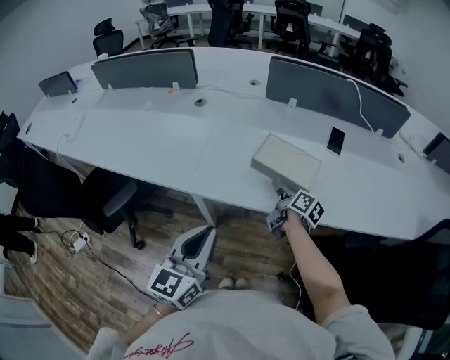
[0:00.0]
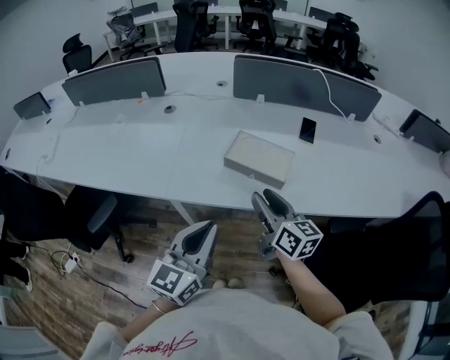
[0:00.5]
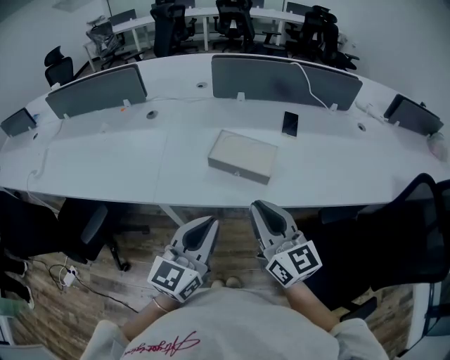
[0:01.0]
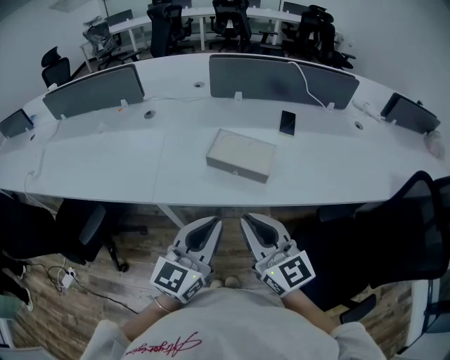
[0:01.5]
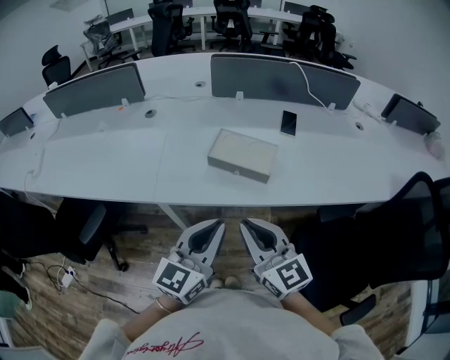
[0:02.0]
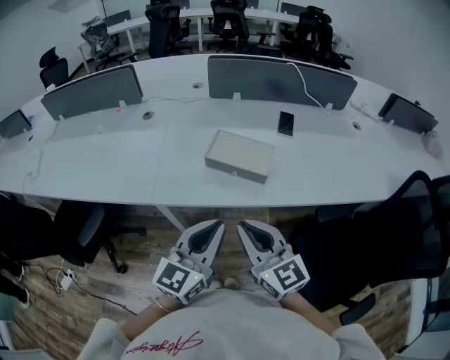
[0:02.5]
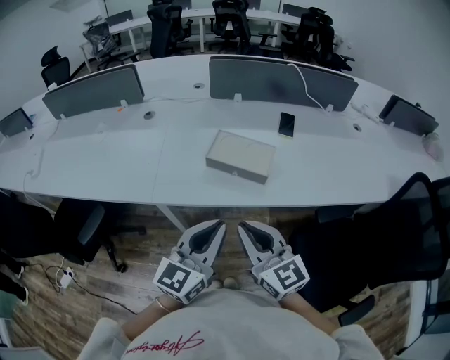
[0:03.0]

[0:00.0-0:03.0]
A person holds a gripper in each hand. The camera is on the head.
0:00.0 to 0:01.5: The left gripper shifts approximately 10 cm to the right. The right gripper travels backward and upward by roughly 30 cm, rolls counterclockwise, seen from behind, by about 60 degrees, and closes.
0:01.5 to 0:03.0: The grippers stay close to where they were, moving slightly.

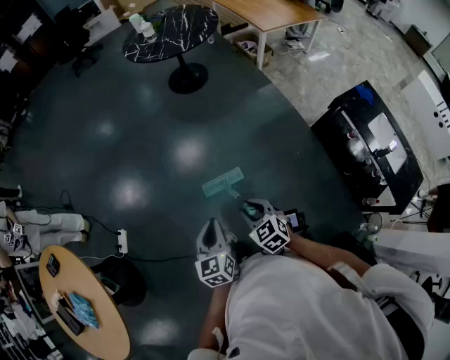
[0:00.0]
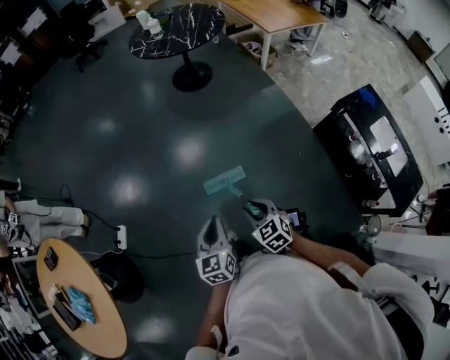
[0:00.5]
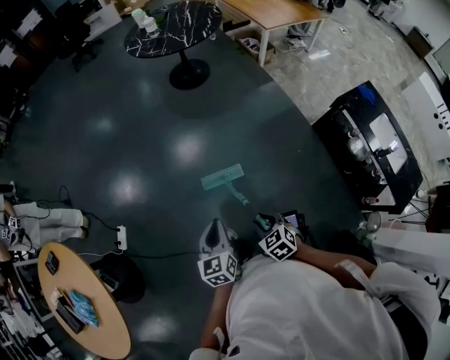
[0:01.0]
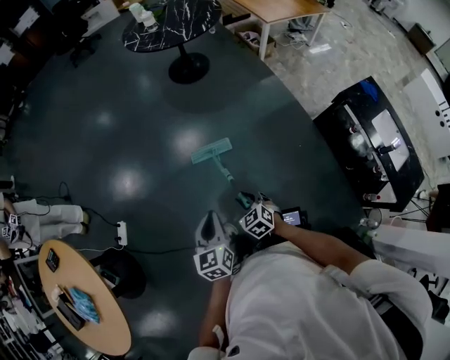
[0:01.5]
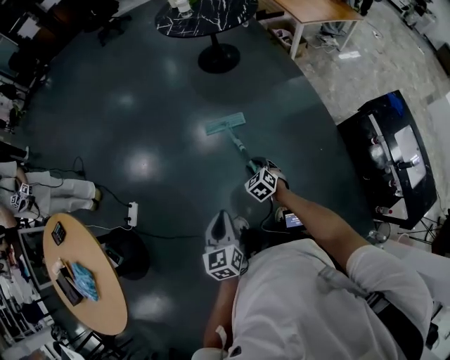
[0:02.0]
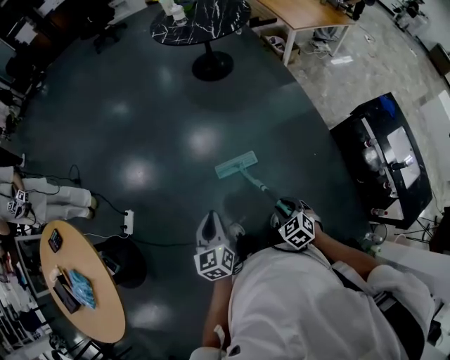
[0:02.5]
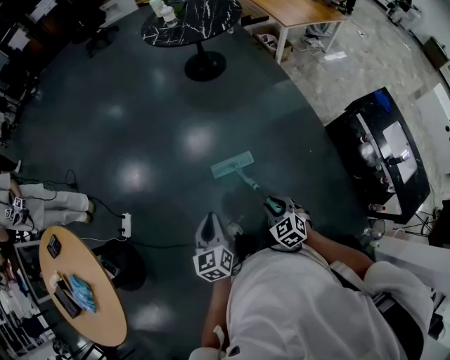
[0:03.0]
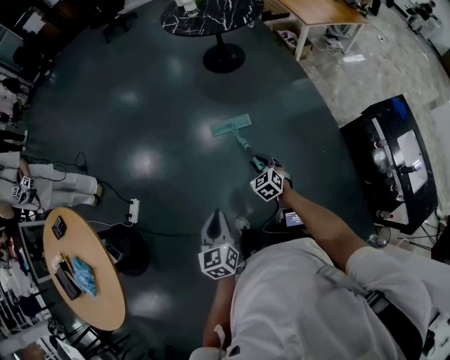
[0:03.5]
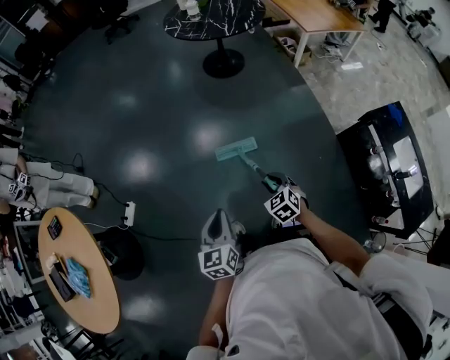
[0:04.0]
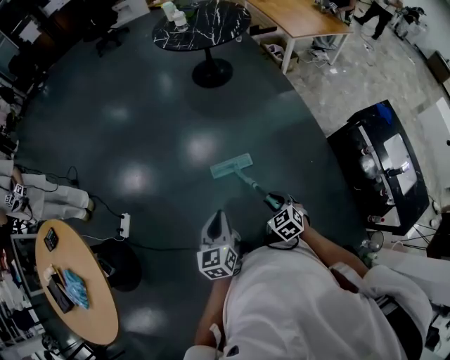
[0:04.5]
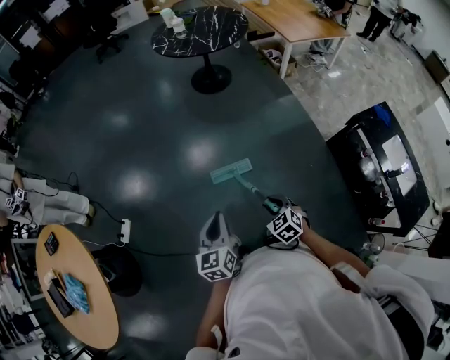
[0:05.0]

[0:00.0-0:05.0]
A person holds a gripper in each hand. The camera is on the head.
0:00.0 to 0:02.5: The left gripper goes about 5 cm to the left; the right gripper swings forward and backward, approximately 20 cm each way, with 2 reversals.
0:02.5 to 0:05.0: The right gripper travels forward and back again, roughly 20 cm each way.

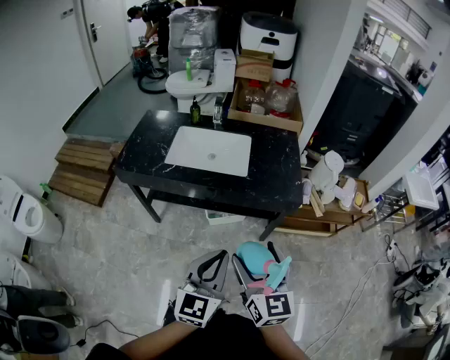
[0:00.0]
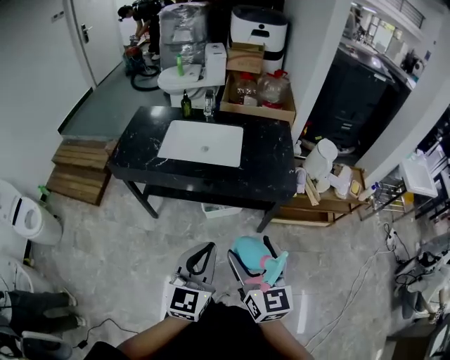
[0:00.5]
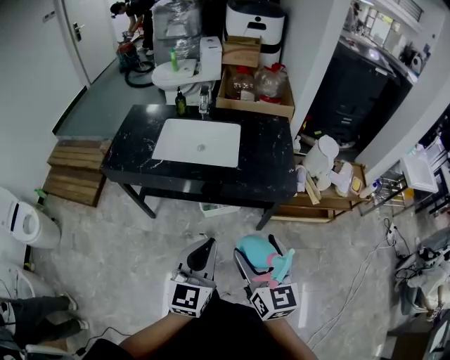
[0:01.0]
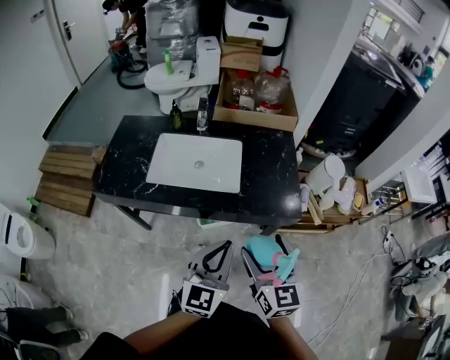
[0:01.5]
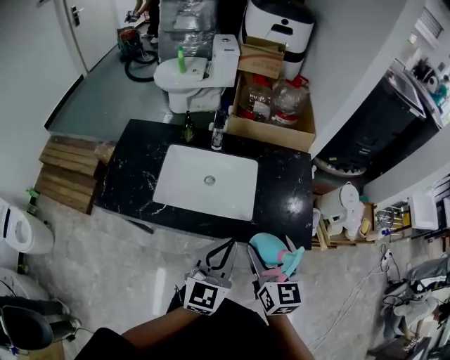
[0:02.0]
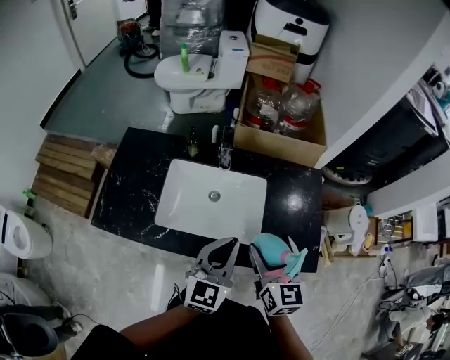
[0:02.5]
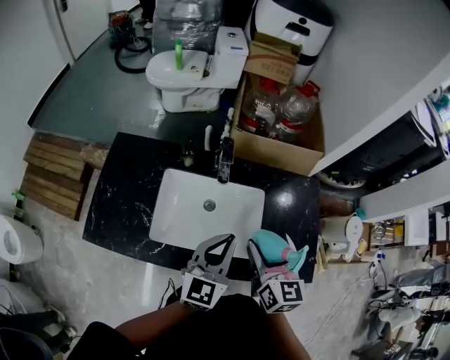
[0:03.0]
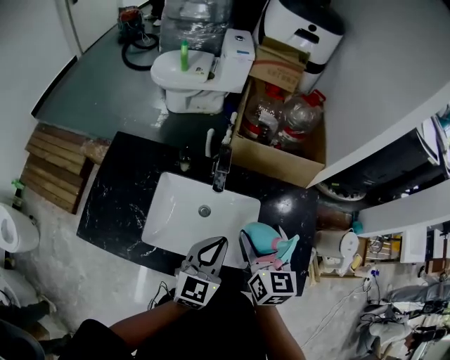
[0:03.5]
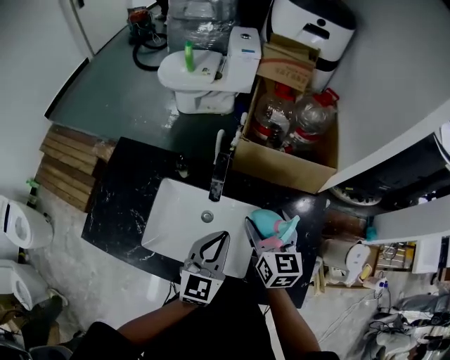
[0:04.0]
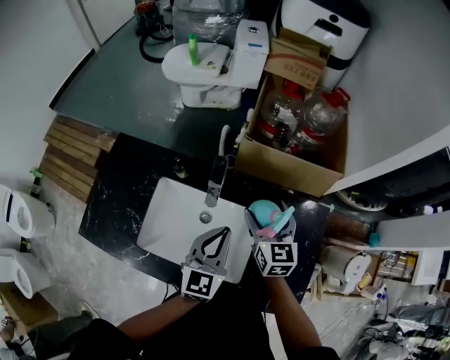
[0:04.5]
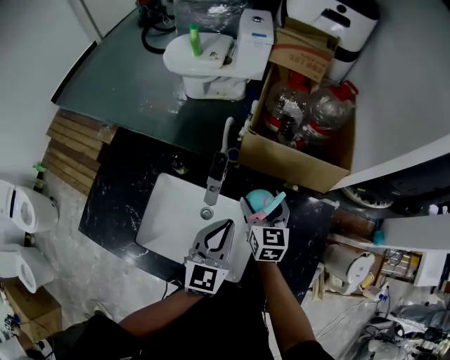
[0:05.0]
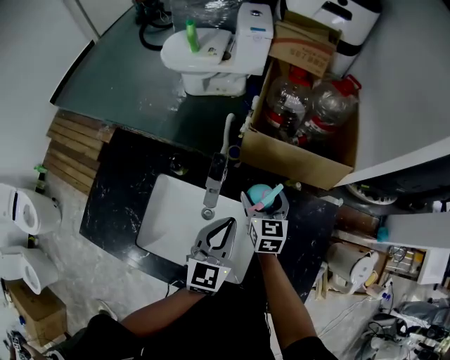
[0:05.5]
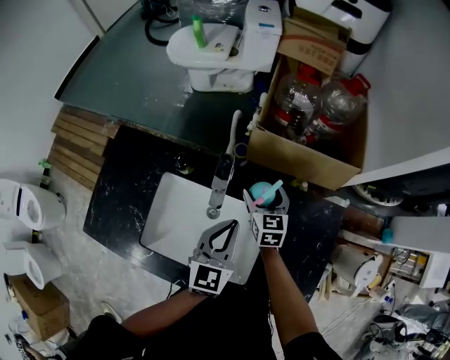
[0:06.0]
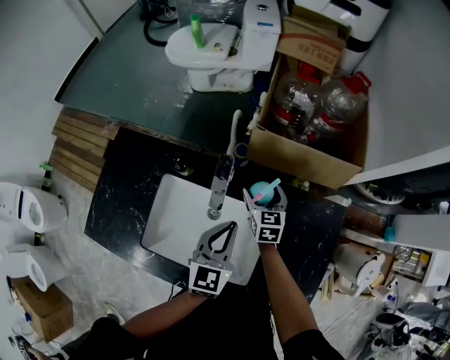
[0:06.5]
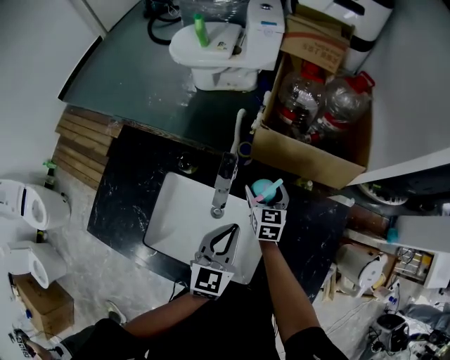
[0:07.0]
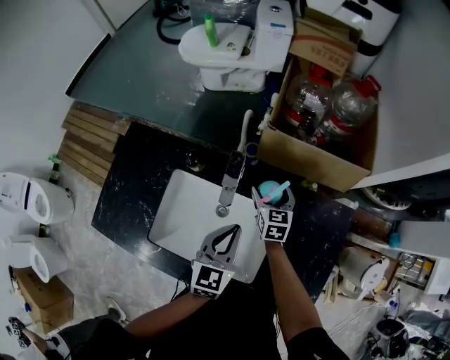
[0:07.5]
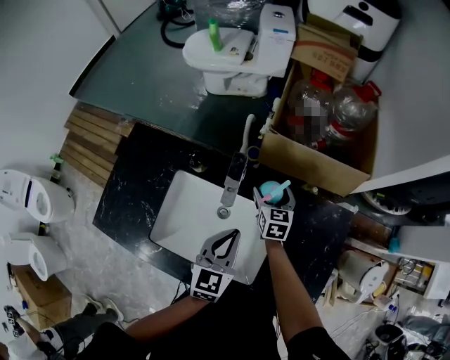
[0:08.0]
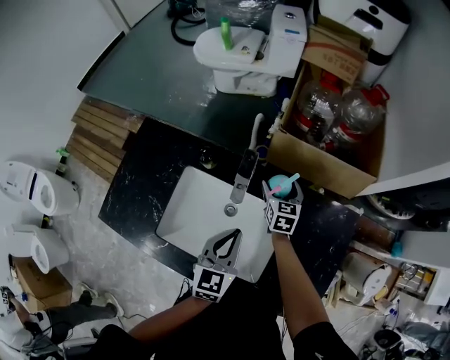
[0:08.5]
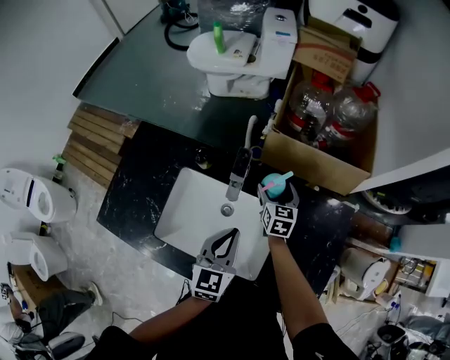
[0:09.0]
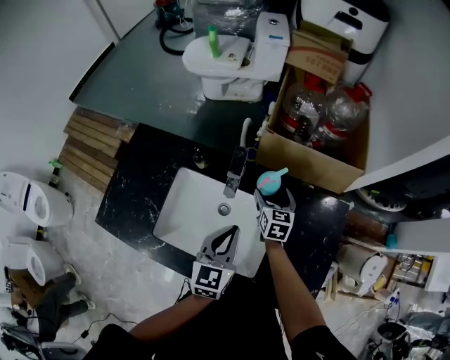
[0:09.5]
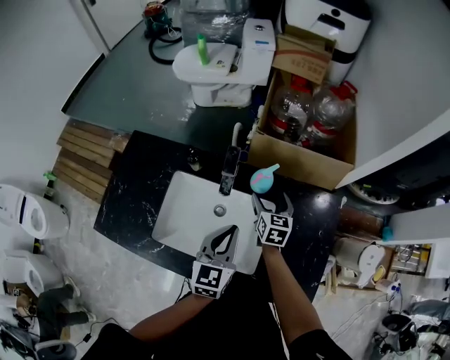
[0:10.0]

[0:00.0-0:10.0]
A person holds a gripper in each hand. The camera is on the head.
0:00.0 to 0:02.0: Both grippers travel together forward, approximately 30 cm.
0:02.0 to 0:04.0: Both grippers travel together forward, approximately 30 cm.
0:04.0 to 0:06.0: The right gripper travels downward and forward by roughly 20 cm. Meanwhile the left gripper heads forward and downward, covering some 10 cm.
0:06.0 to 0:08.0: The grippers move only a little.
0:08.0 to 0:10.0: The right gripper travels backward by roughly 5 cm.

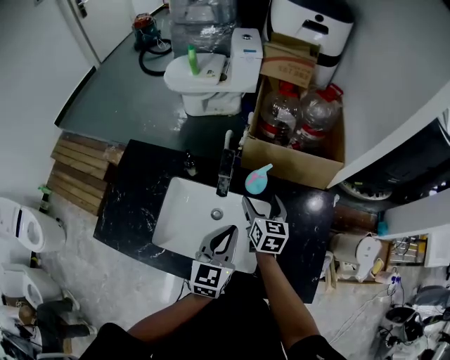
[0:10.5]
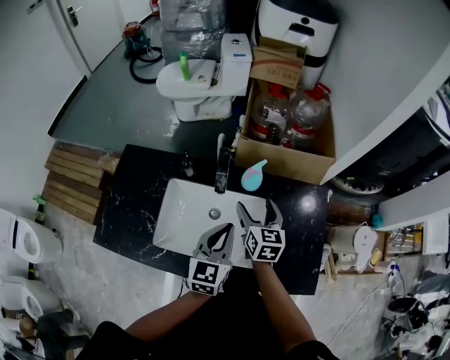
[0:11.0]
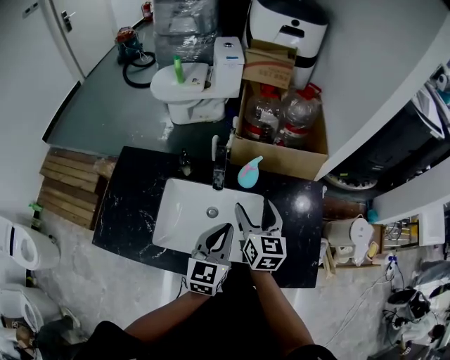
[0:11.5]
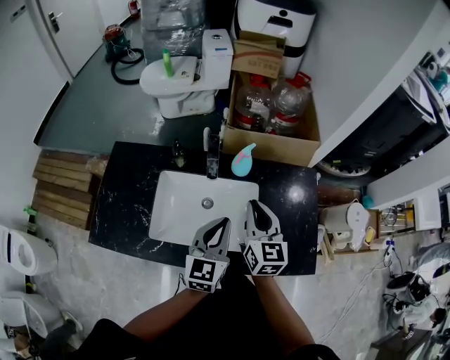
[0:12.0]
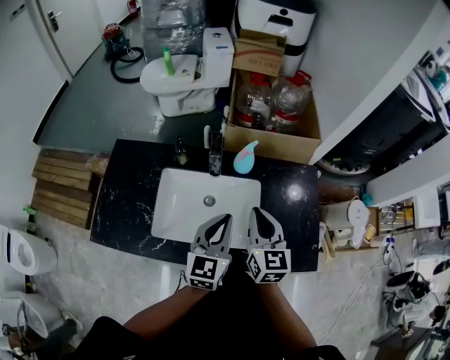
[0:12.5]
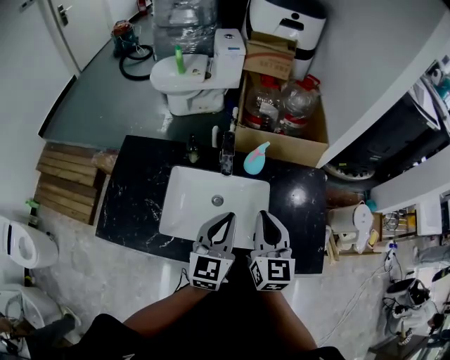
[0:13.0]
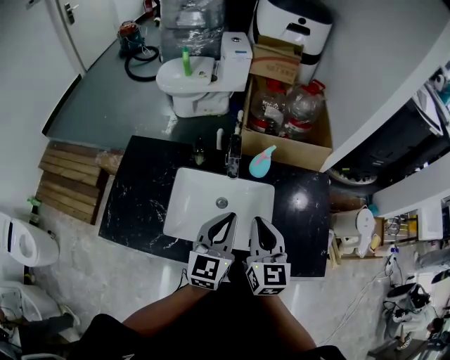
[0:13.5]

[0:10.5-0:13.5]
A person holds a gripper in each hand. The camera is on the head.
0:10.5 to 0:12.0: The right gripper is displaced backward and upward by roughly 15 cm, and closes its fingers. Meanwhile the left gripper goes some 5 cm backward.
0:12.0 to 0:13.5: The left gripper changes place by approximately 5 cm. The right gripper is displaced backward by roughly 5 cm.

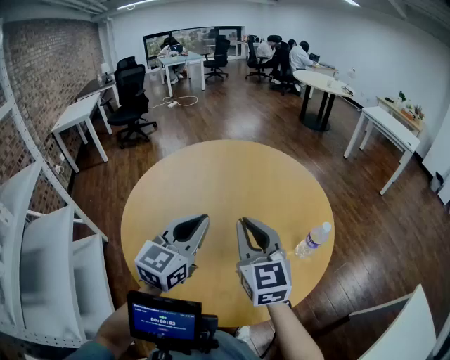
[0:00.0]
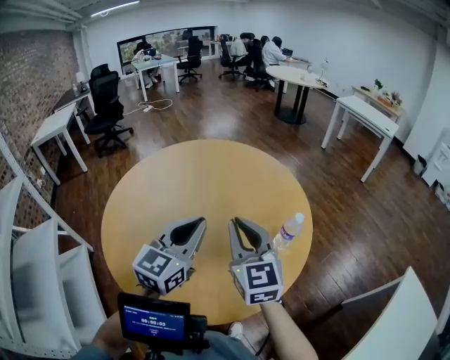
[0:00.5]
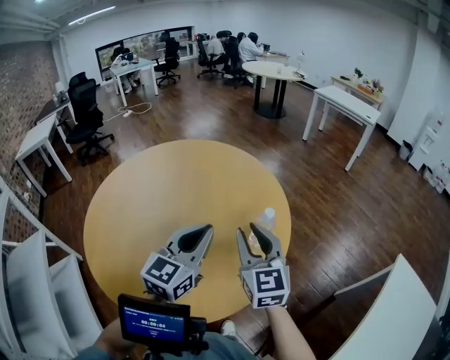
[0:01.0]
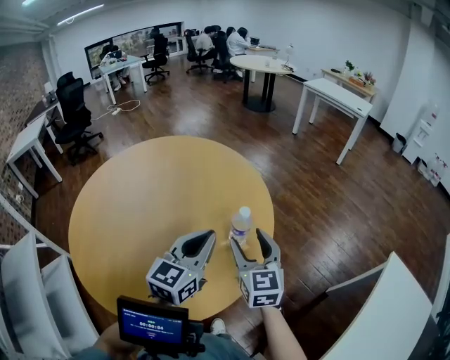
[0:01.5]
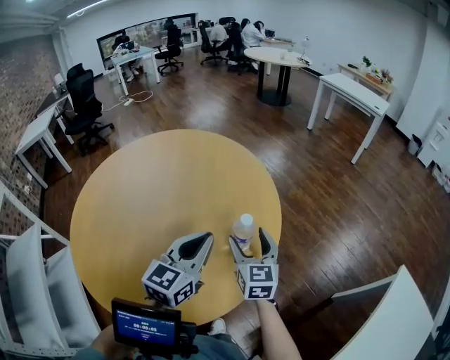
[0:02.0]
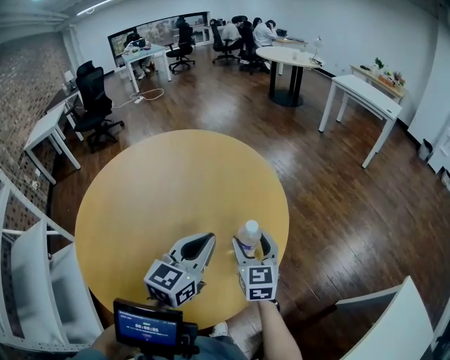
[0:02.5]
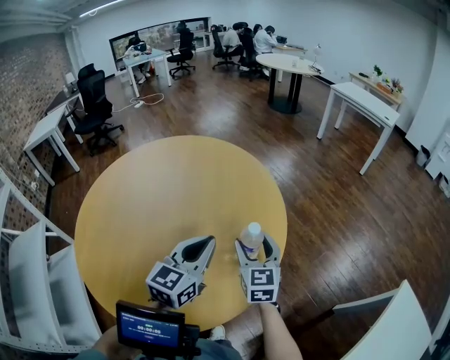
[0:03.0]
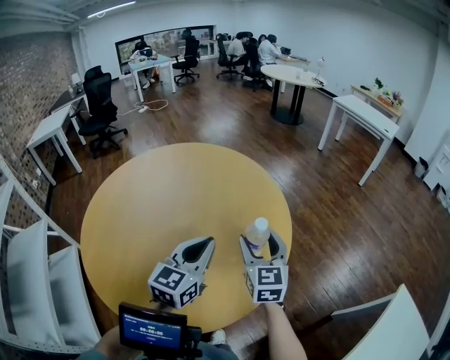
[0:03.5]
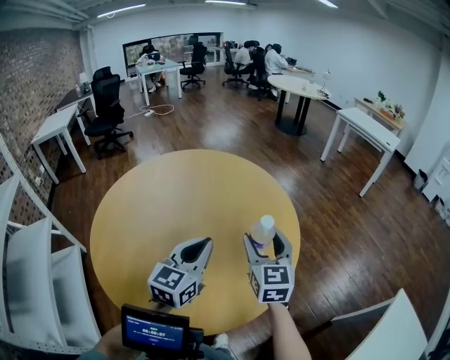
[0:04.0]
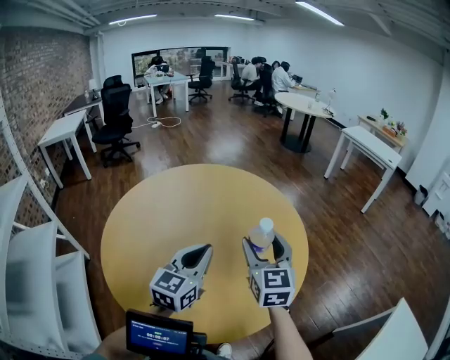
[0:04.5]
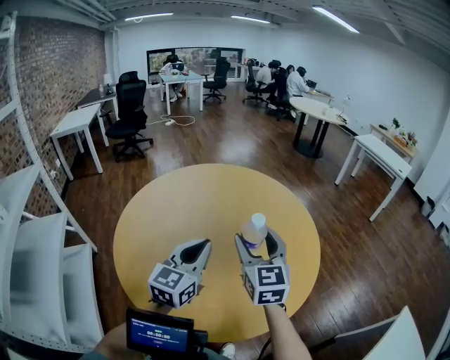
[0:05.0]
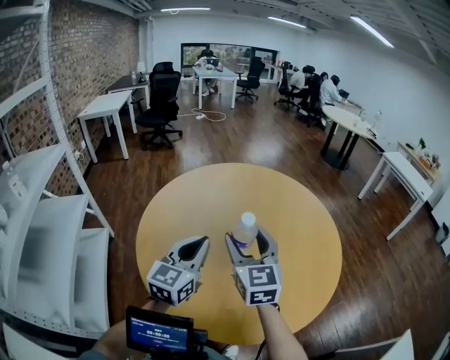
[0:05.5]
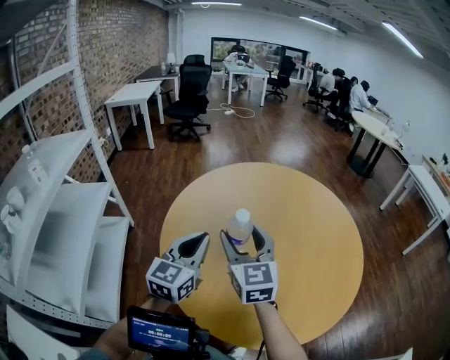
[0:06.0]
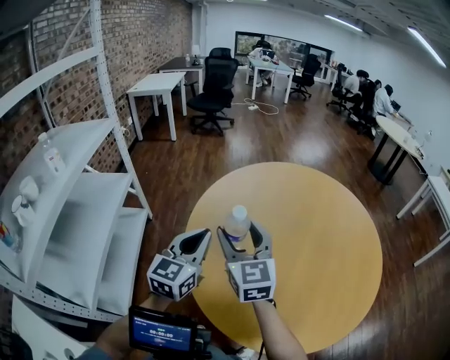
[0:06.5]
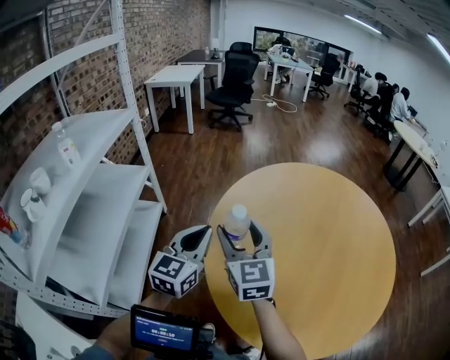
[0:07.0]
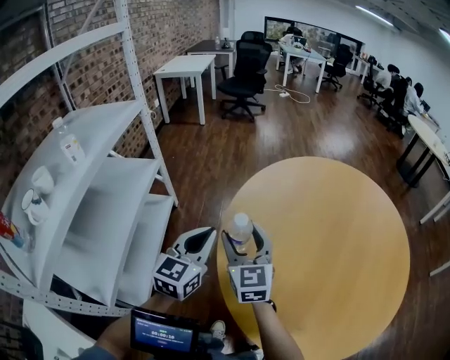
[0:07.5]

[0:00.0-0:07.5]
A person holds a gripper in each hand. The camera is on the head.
0:00.0 to 0:02.0: The right gripper goes some 30 cm to the right and downward, rotates roughly 20 degrees, and opens its fingers; the left gripper moves to the right, about 25 cm.
0:02.0 to 0:04.0: The right gripper shifts about 15 cm upward and to the left, while the left gripper is displaced to the left by some 10 cm.
0:04.0 to 0:05.5: The two grippers go about 25 cm to the left. The right gripper rotates roughly 20 degrees.
0:05.5 to 0:07.5: Both grippers move to the left, approximately 30 cm. The right gripper swivels some 20 degrees; the left gripper swivels some 20 degrees.
